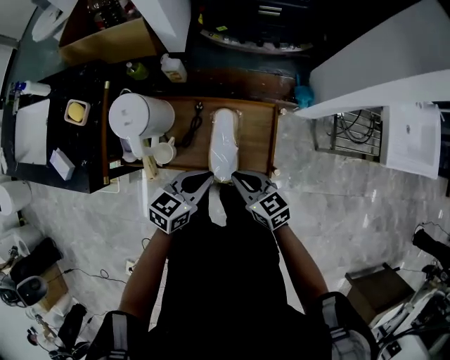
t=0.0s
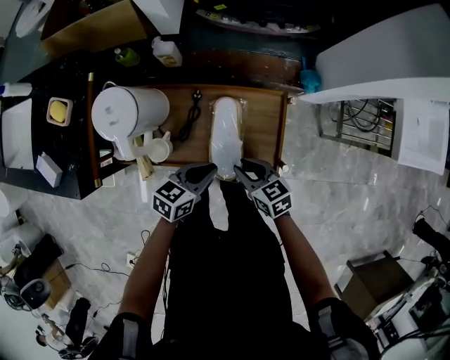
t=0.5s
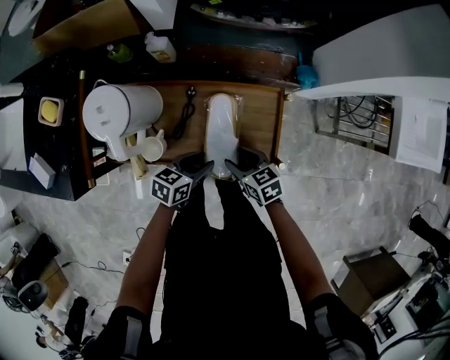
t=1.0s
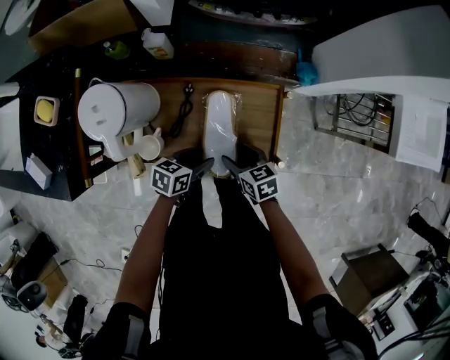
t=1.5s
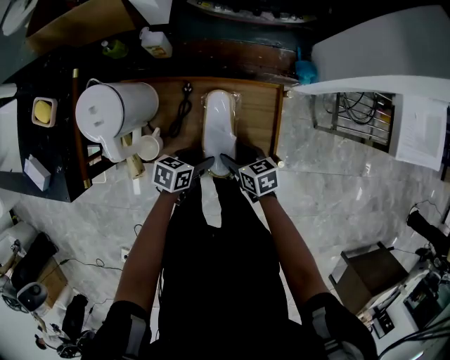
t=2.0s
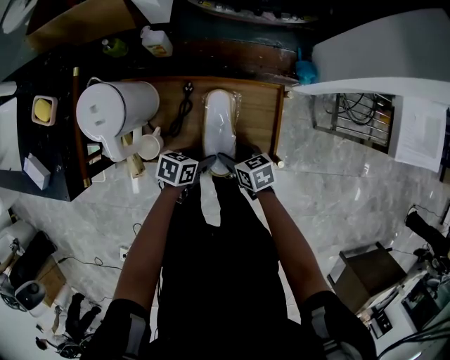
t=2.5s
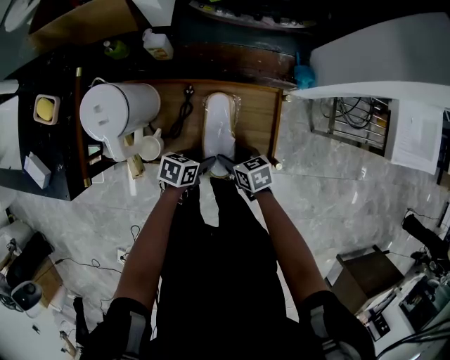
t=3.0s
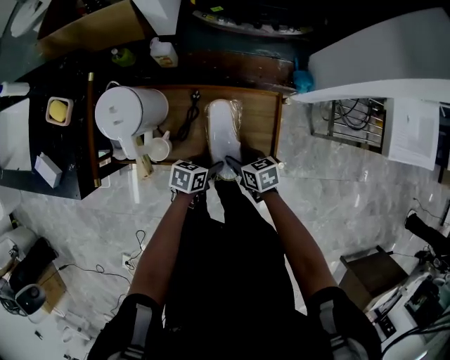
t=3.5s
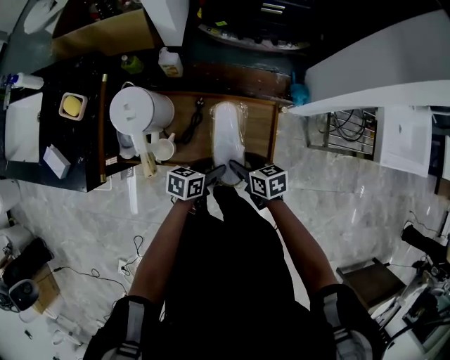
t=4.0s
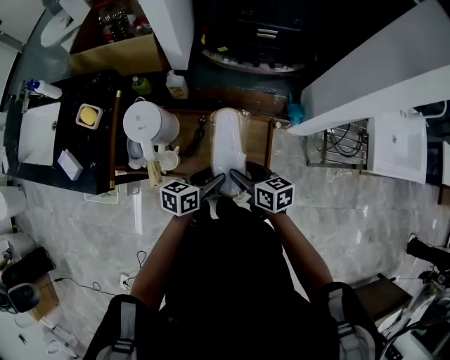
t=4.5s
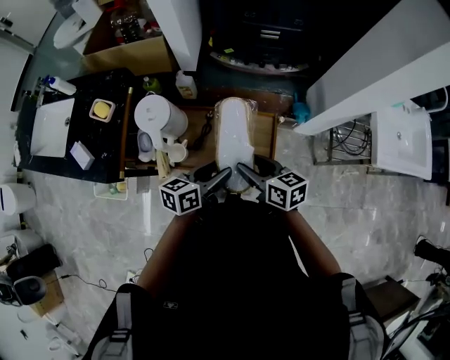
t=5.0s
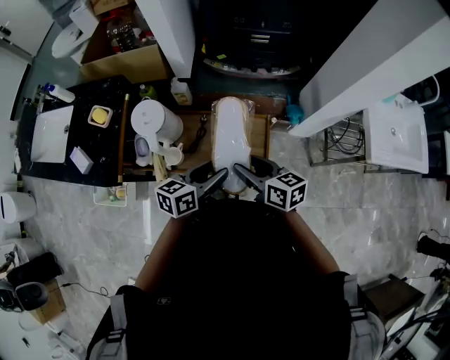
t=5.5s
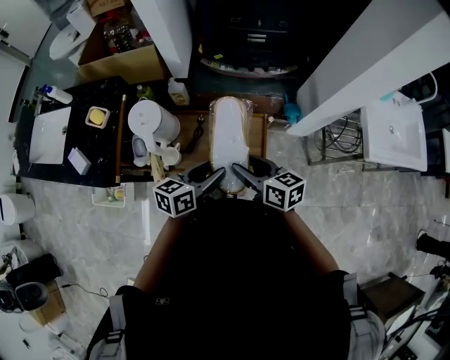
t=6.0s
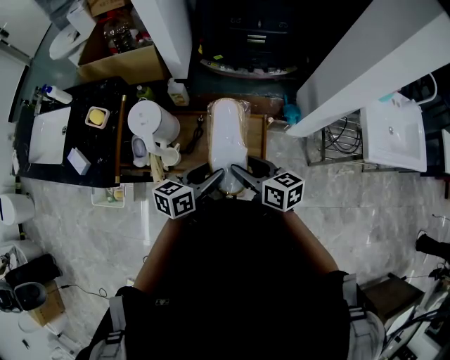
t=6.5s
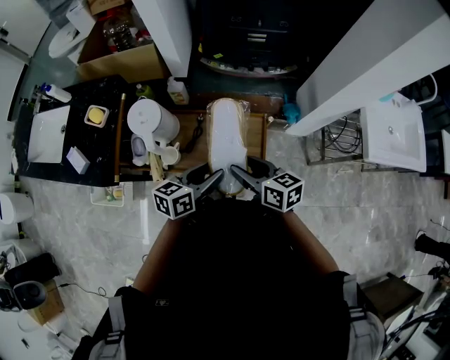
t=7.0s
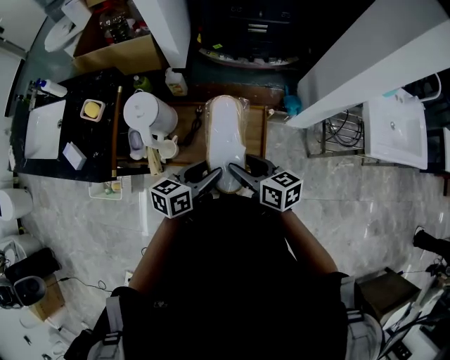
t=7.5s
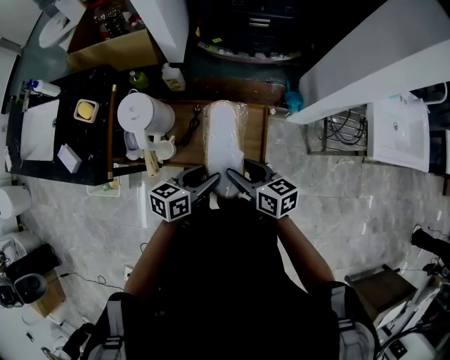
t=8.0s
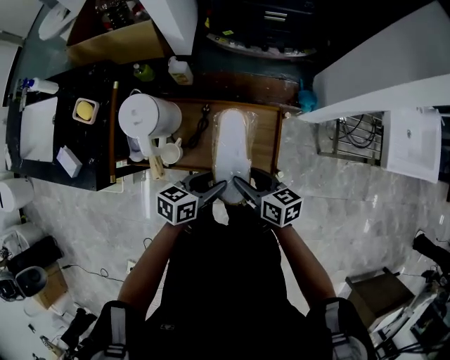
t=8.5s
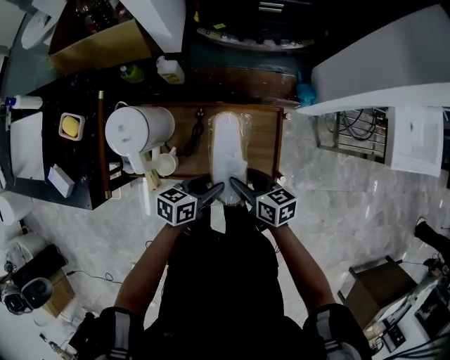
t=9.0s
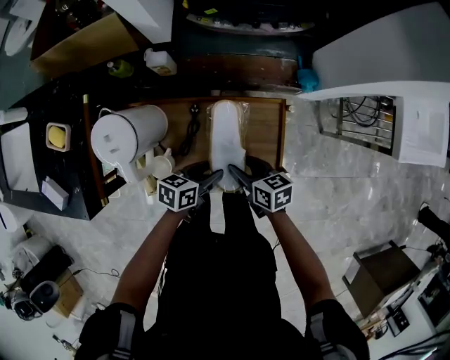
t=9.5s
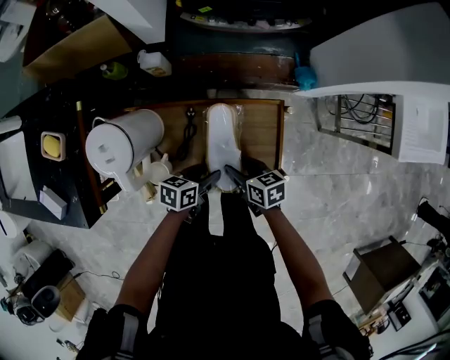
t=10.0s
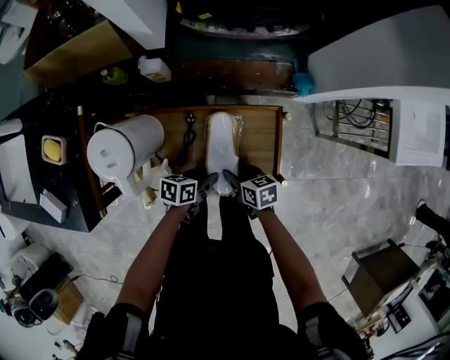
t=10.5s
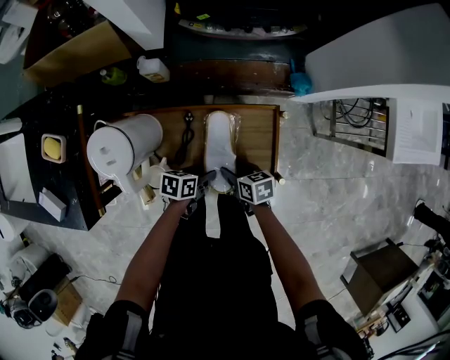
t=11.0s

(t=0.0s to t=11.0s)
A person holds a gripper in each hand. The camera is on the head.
t=0.0s - t=2.0s: The two grippers go some 20 cm downward. The left gripper changes its angle by roughly 30 degrees, and opens up; the right gripper changes its angle by approximately 20 degrees, and opens.
t=2.0s - t=3.5s: There are only small adjustments of the grippers.
t=3.5s - t=5.5s: Both grippers travel together upward, some 30 cm. The left gripper rotates approximately 30 degrees, while the right gripper changes its angle by approximately 30 degrees.
t=5.5s - t=7.5s: The grippers move only a little.
t=7.5s - t=9.0s: The two grippers go about 15 cm downward.
t=9.0s - t=11.0s: The grippers both shift downward by approximately 15 cm.

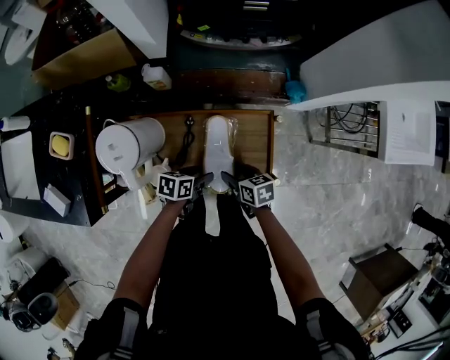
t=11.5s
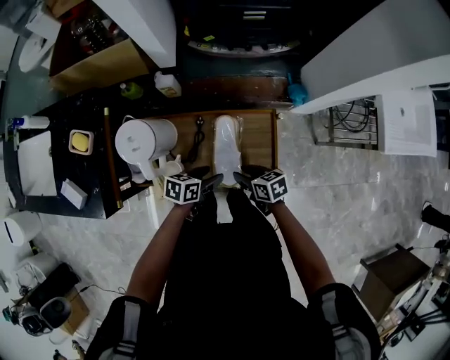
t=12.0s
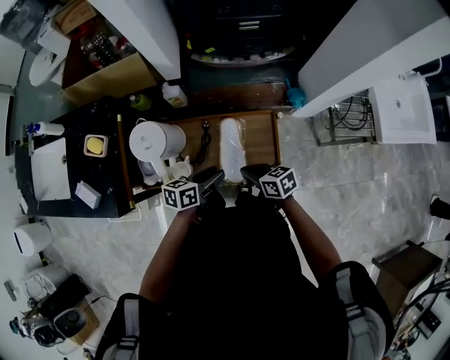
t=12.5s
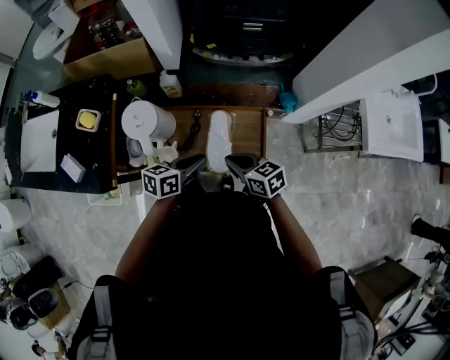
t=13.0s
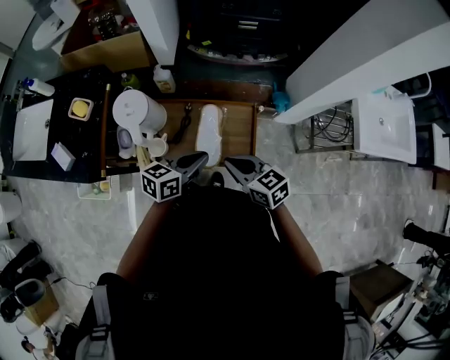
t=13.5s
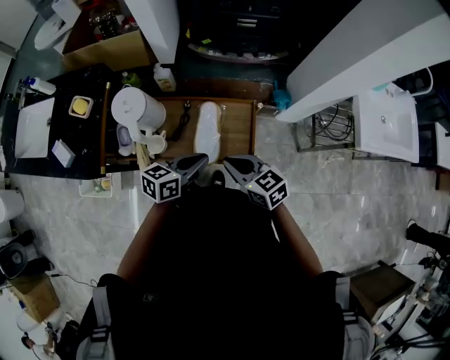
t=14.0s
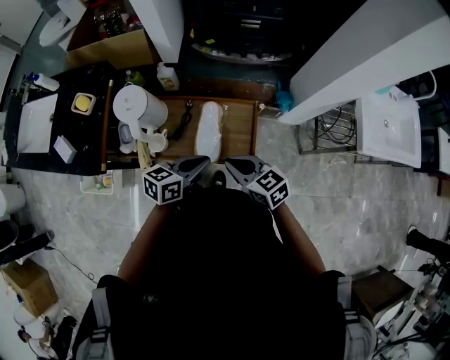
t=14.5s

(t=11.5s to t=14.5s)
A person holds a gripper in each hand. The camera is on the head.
t=11.5s - t=13.0s: Both grippers move upward, some 20 cm. The right gripper rotates approximately 20 degrees, and closes its fingers. The left gripper turns by roughly 30 degrees, and closes up.
t=13.0s - t=14.5s: The right gripper shifts approximately 5 cm backward. The left gripper is displaced to the right and backward by roughly 10 cm.

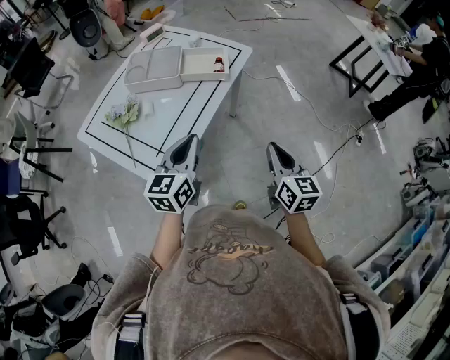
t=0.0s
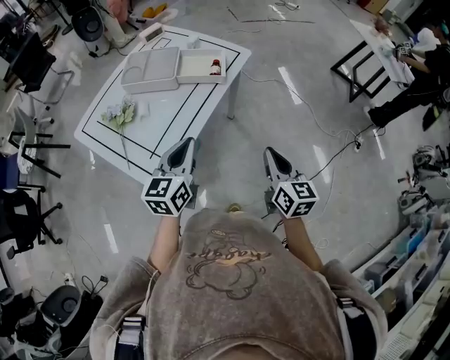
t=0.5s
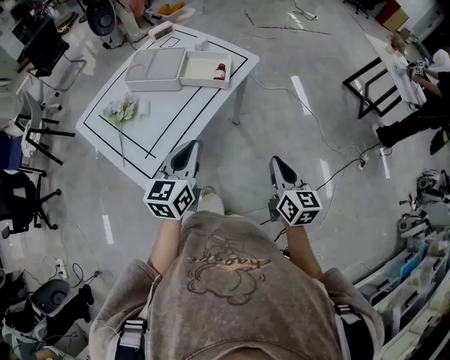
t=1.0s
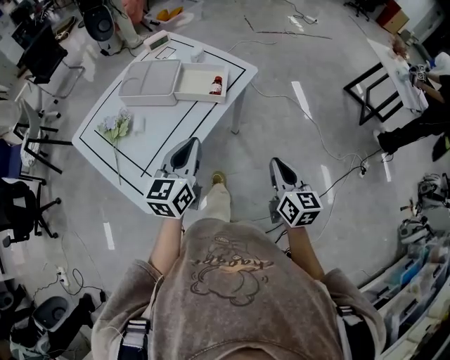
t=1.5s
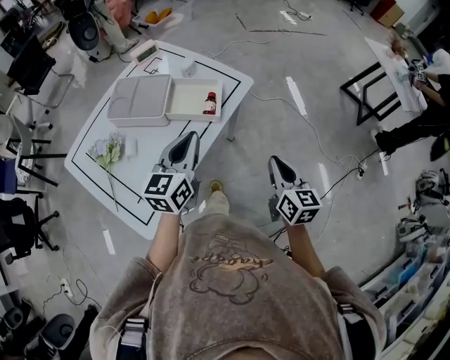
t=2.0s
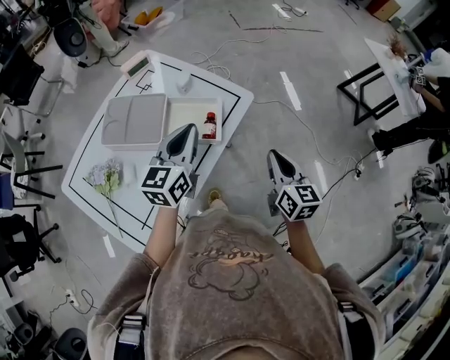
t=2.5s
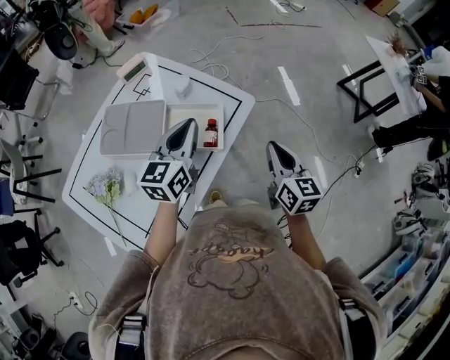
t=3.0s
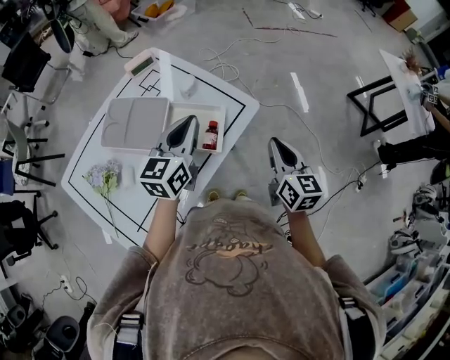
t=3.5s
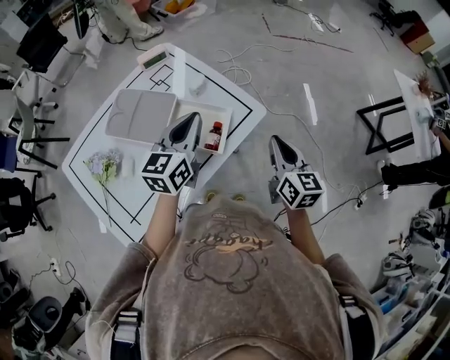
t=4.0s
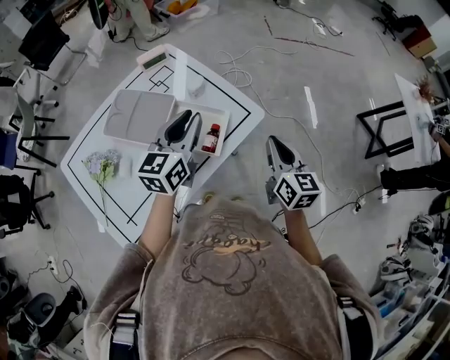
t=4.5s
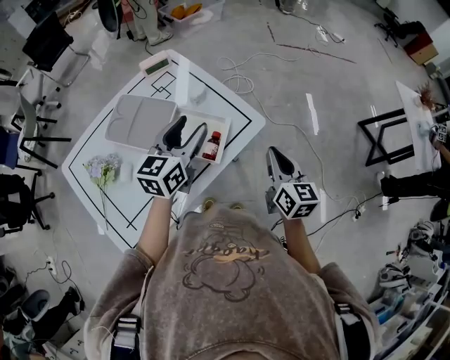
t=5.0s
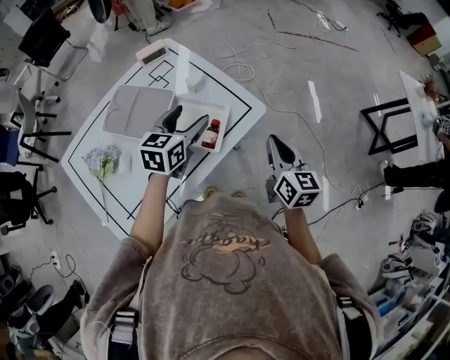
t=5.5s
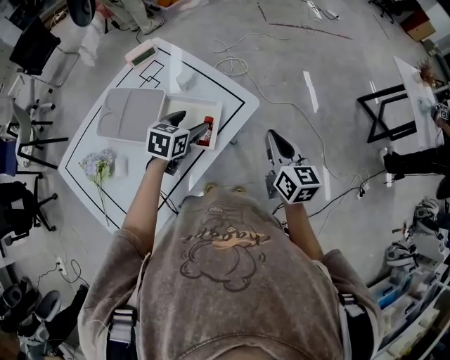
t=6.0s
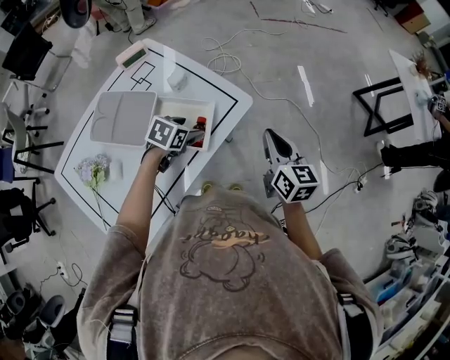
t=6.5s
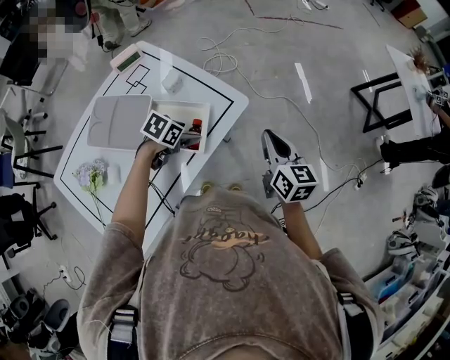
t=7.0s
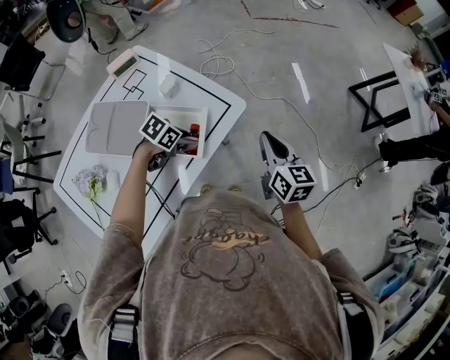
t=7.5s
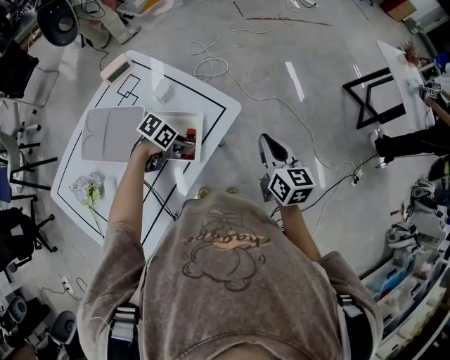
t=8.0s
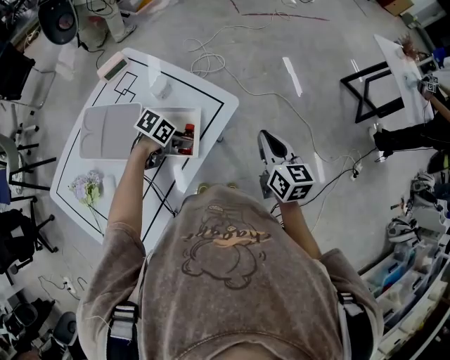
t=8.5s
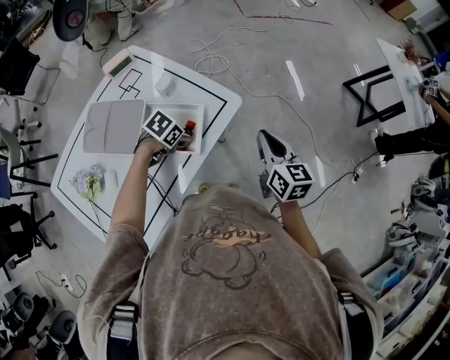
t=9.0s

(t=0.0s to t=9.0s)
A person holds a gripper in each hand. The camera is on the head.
t=0.0s - t=2.0s: The grippers both shift forward by some 20 cm.
t=2.0s - t=4.5s: Both grippers move forward, about 20 cm.
t=4.5s - t=7.0s: The left gripper goes roughly 25 cm downward, points its fingers approximately 50 degrees further downward, and opens up. The right gripper shifts by about 5 cm.
t=7.0s - t=9.0s: The grippers make only small movements.

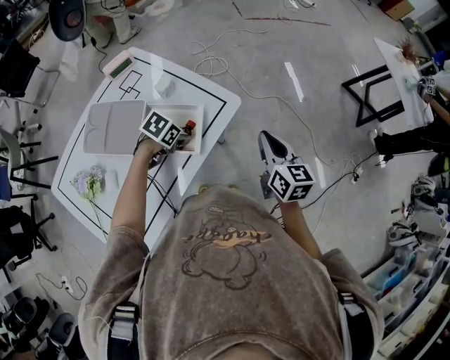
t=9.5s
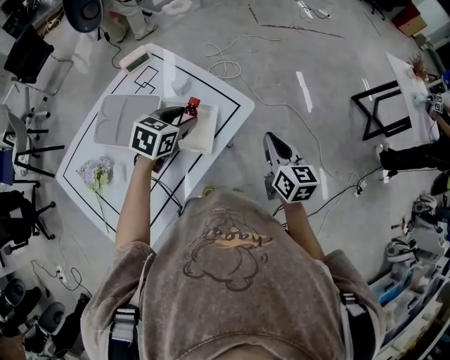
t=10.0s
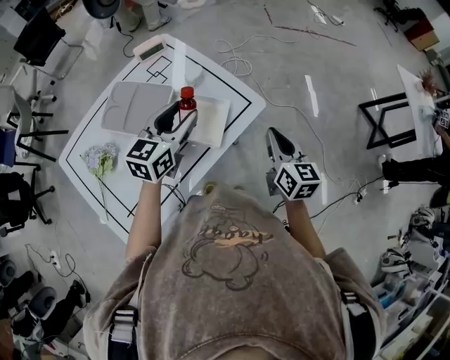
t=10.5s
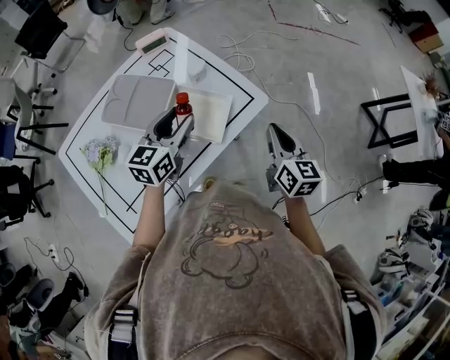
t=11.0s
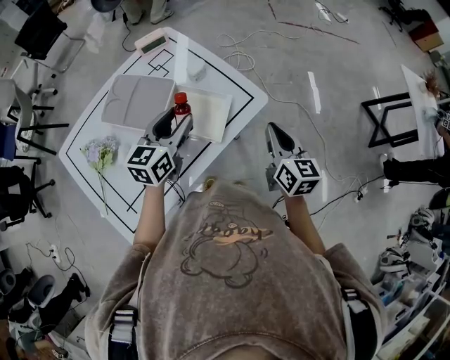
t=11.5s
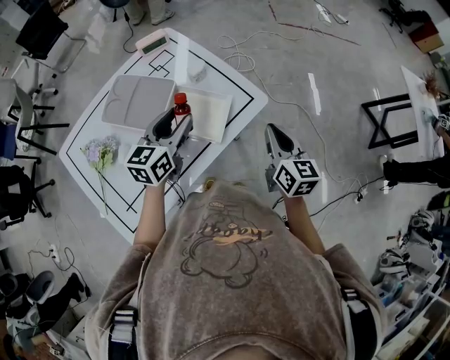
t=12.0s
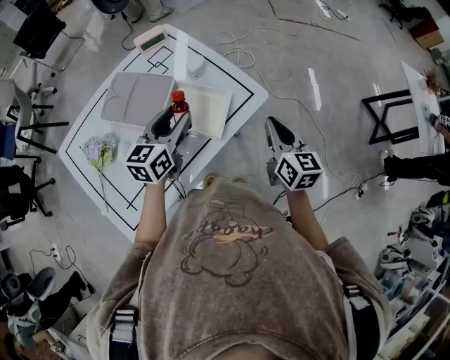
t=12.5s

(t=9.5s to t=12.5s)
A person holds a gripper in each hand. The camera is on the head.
t=9.5s - t=11.0s: The right gripper ends up some 5 cm from where it was. The left gripper moves upward, roughly 15 cm, and tilts its fingers some 50 degrees upward.
t=11.0s - t=12.5s: The two grippers keep their place.
